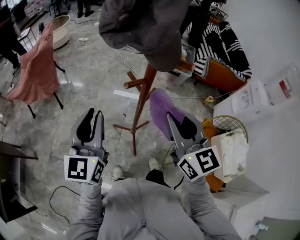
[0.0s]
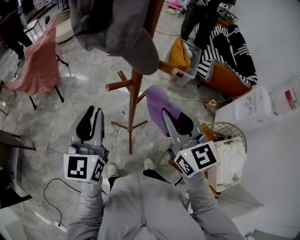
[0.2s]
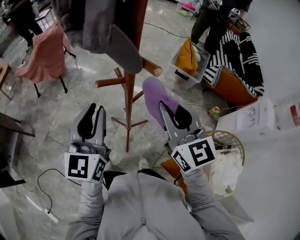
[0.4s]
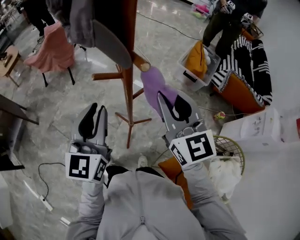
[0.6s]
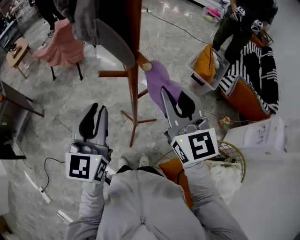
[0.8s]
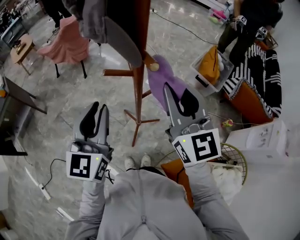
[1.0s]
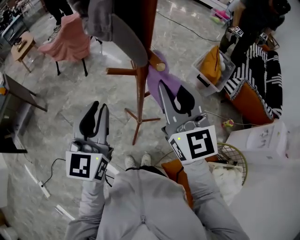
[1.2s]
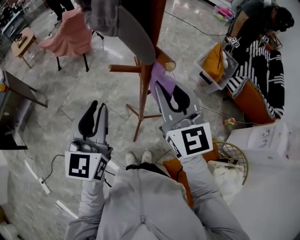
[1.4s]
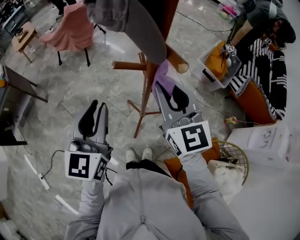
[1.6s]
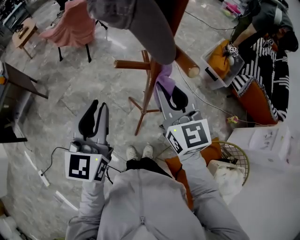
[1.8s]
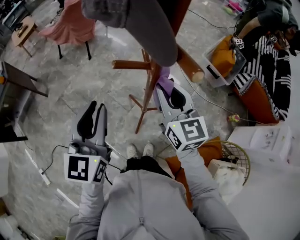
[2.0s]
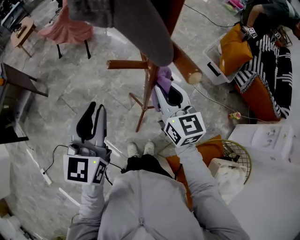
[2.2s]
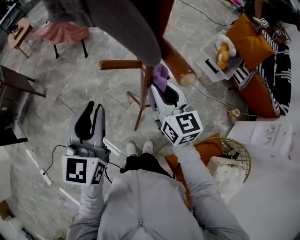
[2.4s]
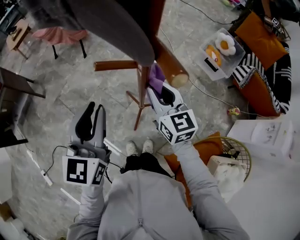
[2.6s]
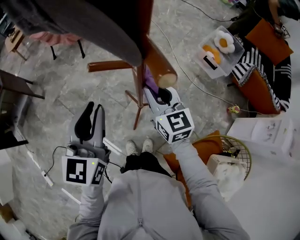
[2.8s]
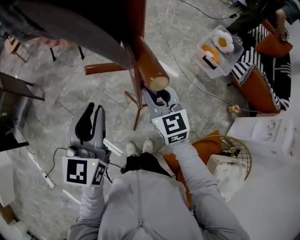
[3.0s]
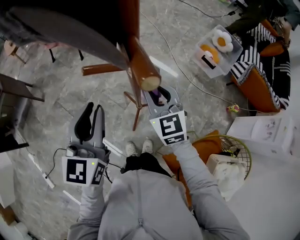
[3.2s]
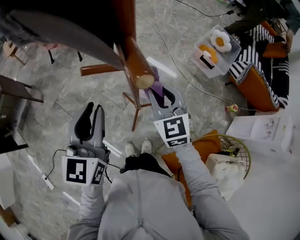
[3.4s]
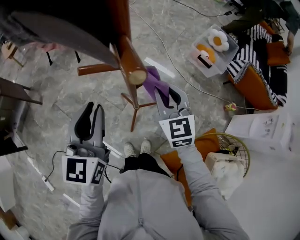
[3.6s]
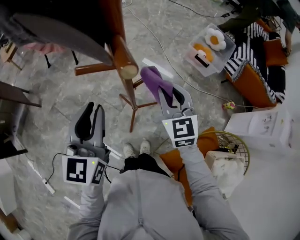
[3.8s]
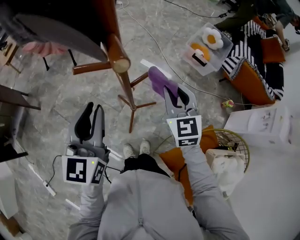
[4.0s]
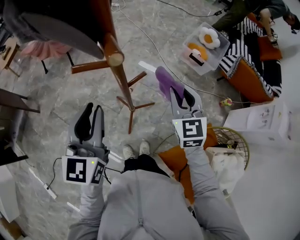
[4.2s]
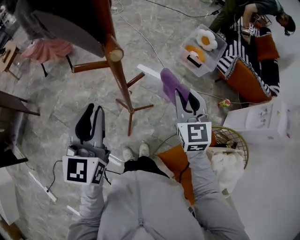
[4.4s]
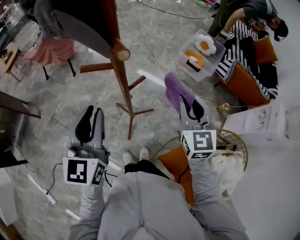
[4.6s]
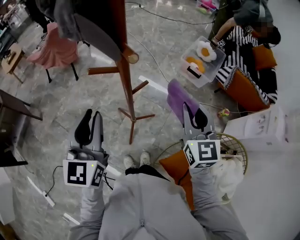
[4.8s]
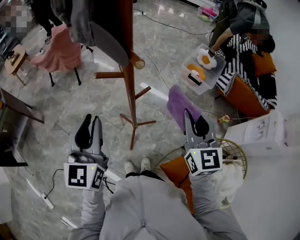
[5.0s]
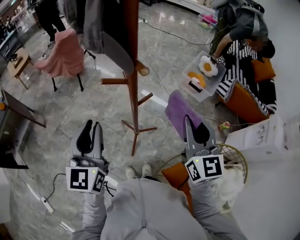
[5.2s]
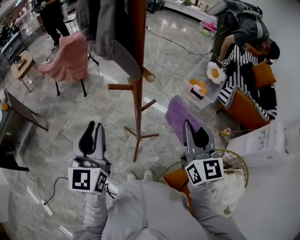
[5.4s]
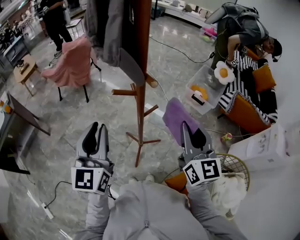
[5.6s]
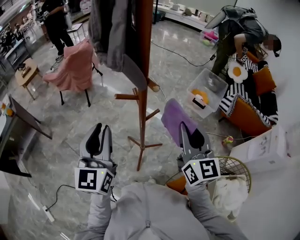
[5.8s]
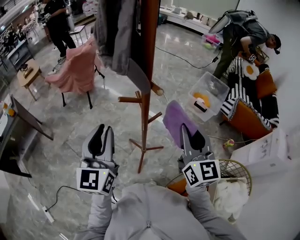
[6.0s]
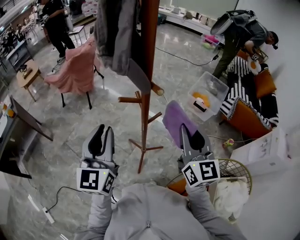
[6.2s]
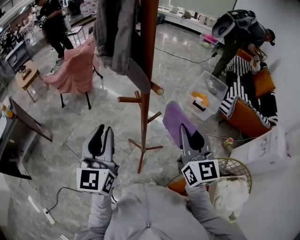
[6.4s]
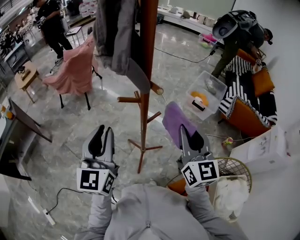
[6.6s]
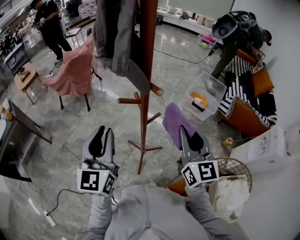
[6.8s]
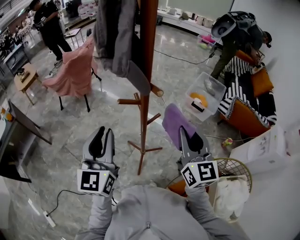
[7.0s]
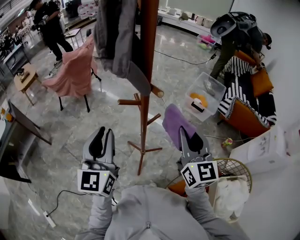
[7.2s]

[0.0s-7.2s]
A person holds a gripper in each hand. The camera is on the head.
0.0s to 1.4s: The left gripper heads to the right and backward, covering about 10 cm, and changes its angle by about 20 degrees. Meanwhile the right gripper is displaced forward by approximately 10 cm, and turns by approximately 30 degrees.
1.4s to 2.8s: The right gripper moves downward, some 15 cm.
2.8s to 4.4s: The left gripper shifts by some 5 cm, while the right gripper is displaced to the right by roughly 15 cm, and rotates roughly 30 degrees.
4.4s to 5.8s: The left gripper moves upward and to the left, about 10 cm; the right gripper is displaced upward, backward and to the left by approximately 15 cm, and changes its angle by approximately 30 degrees.
5.8s to 7.2s: The two grippers keep their place.

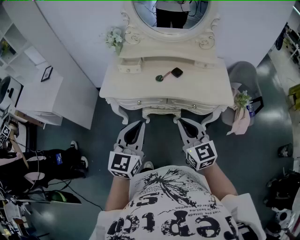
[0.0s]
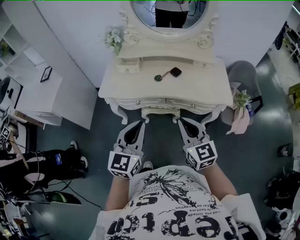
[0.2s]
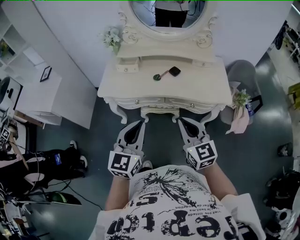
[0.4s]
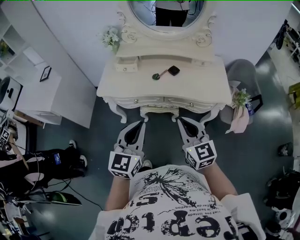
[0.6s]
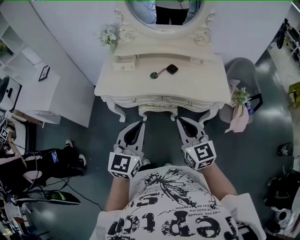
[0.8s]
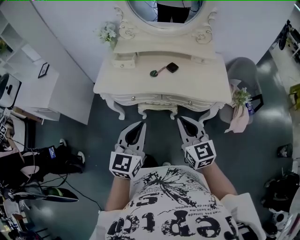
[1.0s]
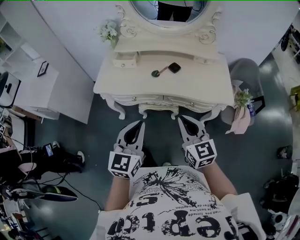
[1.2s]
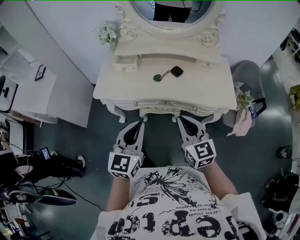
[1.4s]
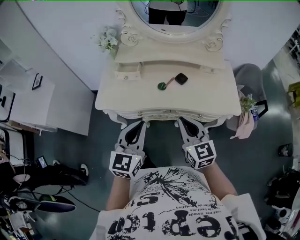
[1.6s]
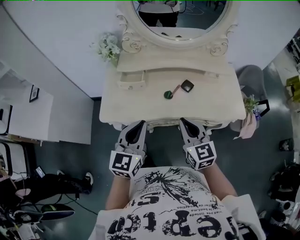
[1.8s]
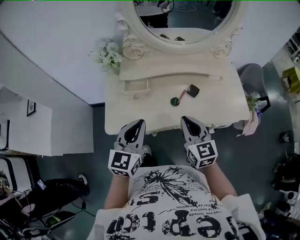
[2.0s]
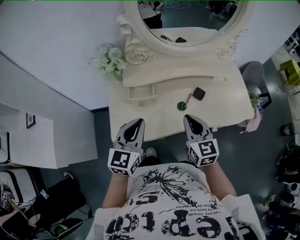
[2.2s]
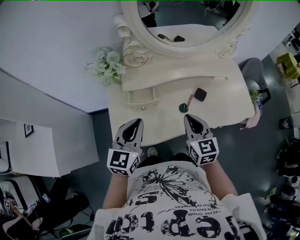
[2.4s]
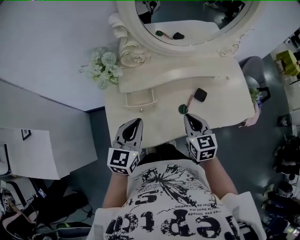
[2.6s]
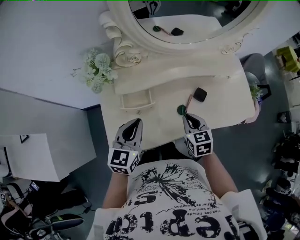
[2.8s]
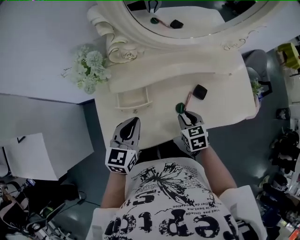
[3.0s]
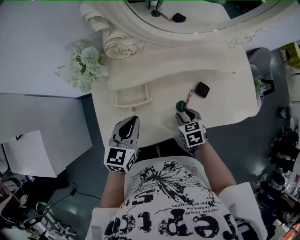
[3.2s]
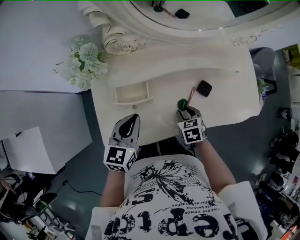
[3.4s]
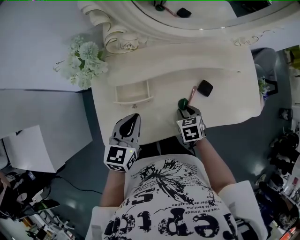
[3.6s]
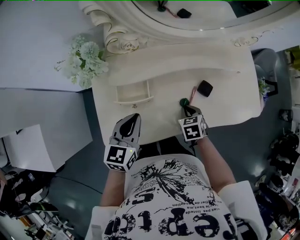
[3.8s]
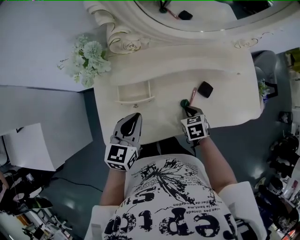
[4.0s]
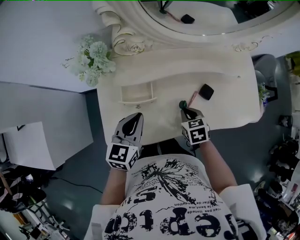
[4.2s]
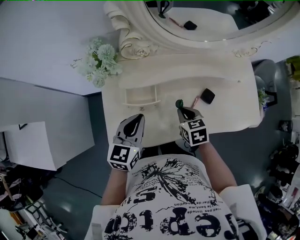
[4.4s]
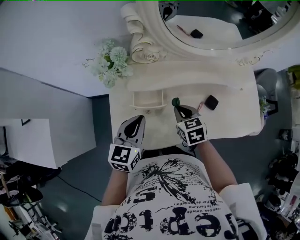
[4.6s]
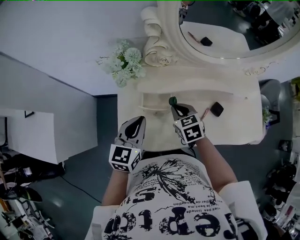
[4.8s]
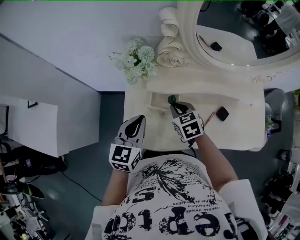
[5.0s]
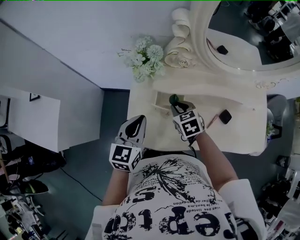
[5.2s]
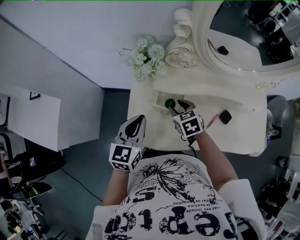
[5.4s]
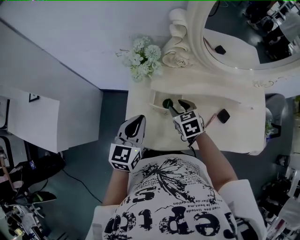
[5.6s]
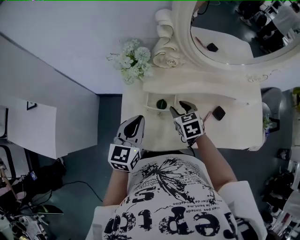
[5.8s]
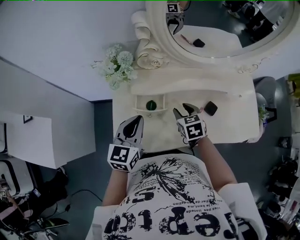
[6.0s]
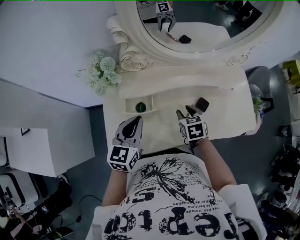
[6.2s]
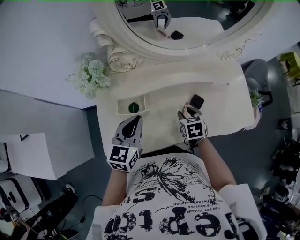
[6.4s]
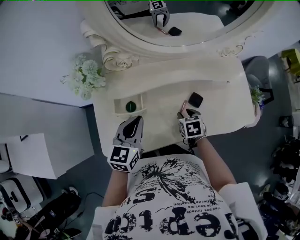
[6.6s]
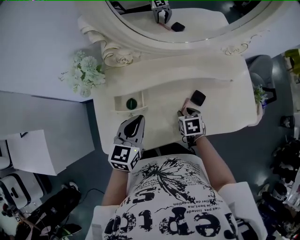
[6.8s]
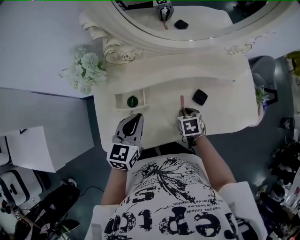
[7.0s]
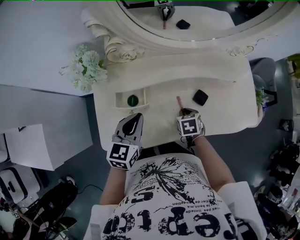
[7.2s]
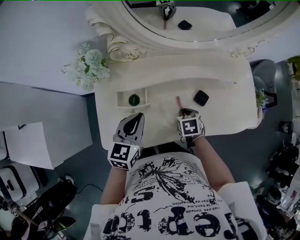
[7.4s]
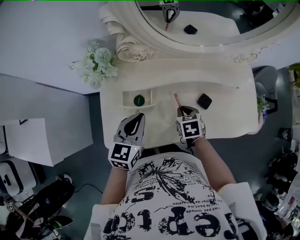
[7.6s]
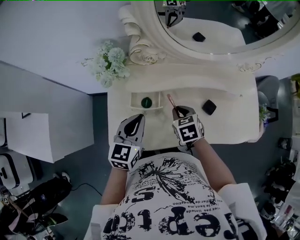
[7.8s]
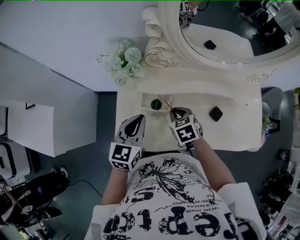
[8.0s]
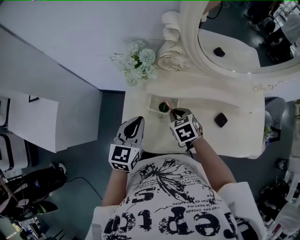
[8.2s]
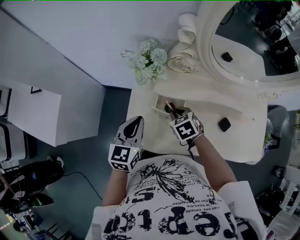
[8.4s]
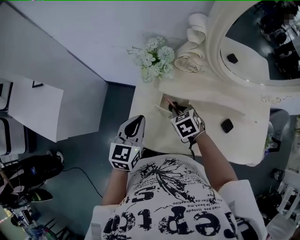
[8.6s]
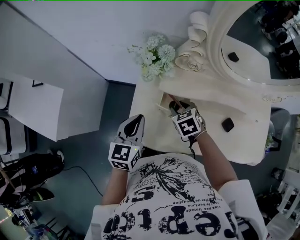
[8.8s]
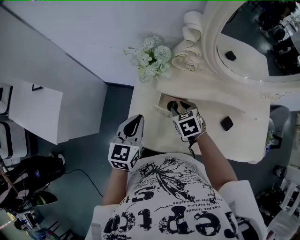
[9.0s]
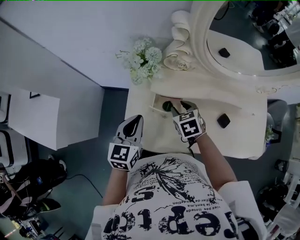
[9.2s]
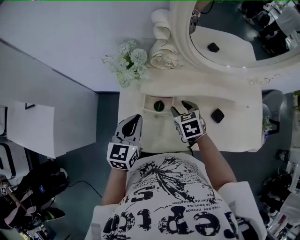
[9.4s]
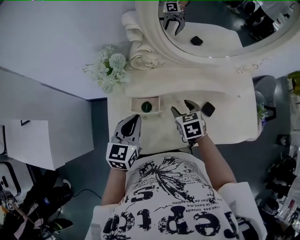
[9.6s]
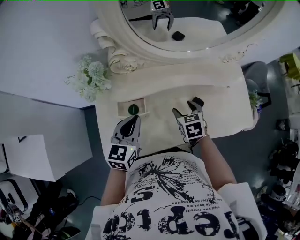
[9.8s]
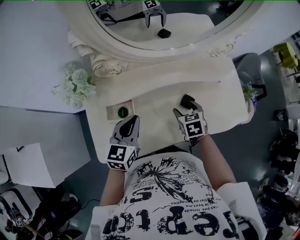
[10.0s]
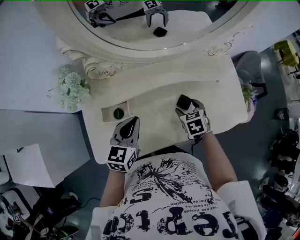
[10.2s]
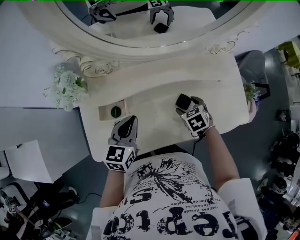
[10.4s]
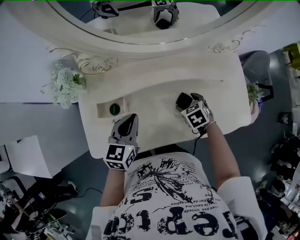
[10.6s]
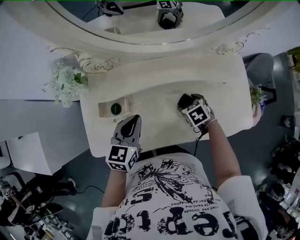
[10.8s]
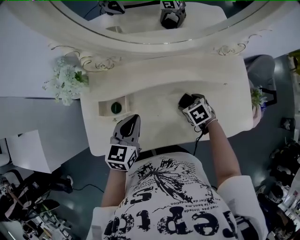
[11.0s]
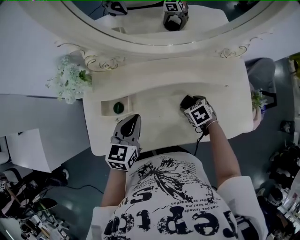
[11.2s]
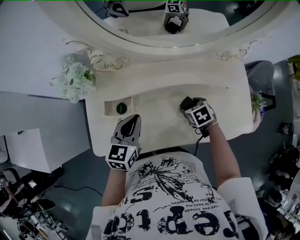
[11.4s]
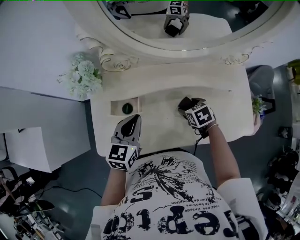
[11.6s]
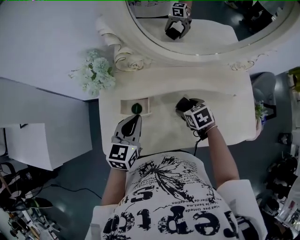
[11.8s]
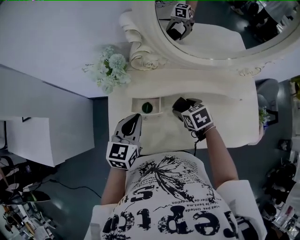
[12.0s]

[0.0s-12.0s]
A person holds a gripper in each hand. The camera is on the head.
0.0s to 1.6s: The grippers both shift forward by about 10 cm.
1.6s to 3.0s: The right gripper moves forward, downward and to the left, approximately 30 cm, and tips its fingers downward by roughly 40 degrees, while the left gripper moves forward and to the left, approximately 30 cm, and turns by approximately 20 degrees.
3.0s to 4.4s: The right gripper shifts by approximately 5 cm.
4.4s to 6.0s: The right gripper reaches some 15 cm to the left, then returns, and opens its fingers.
6.0s to 7.6s: Both grippers travel together to the right, about 5 cm. The right gripper closes its fingers.
7.6s to 9.0s: The right gripper travels to the left and forward by about 20 cm, and rotates roughly 30 degrees. Meanwhile the left gripper goes about 15 cm to the left.
9.0s to 10.4s: The right gripper shifts by approximately 35 cm, and opens, while the left gripper moves roughly 25 cm, and turns by roughly 20 degrees.
10.4s to 12.0s: The grippers both shift to the left by roughly 15 cm.

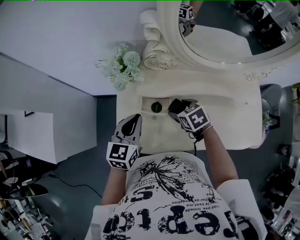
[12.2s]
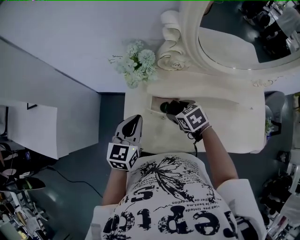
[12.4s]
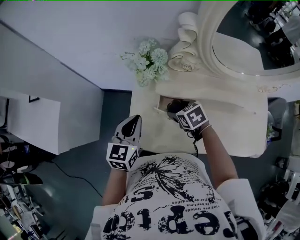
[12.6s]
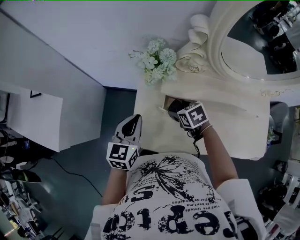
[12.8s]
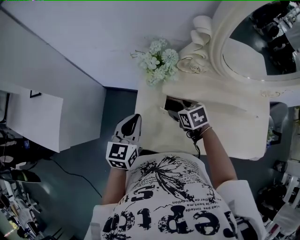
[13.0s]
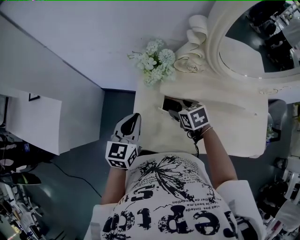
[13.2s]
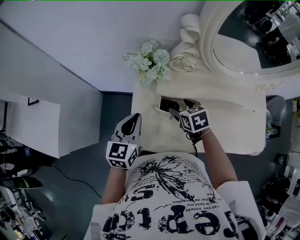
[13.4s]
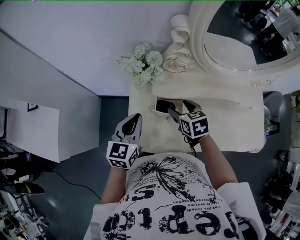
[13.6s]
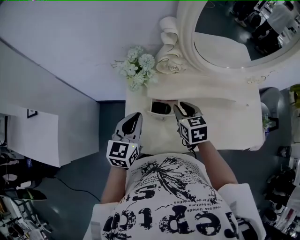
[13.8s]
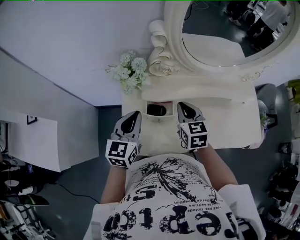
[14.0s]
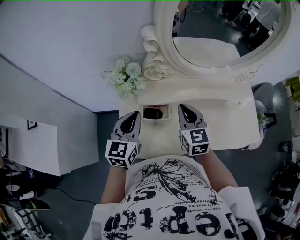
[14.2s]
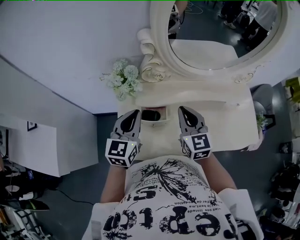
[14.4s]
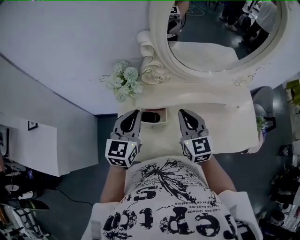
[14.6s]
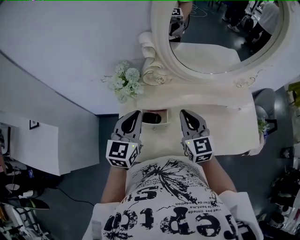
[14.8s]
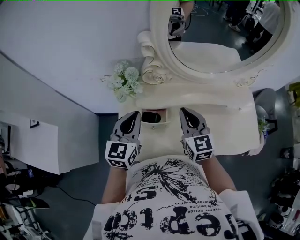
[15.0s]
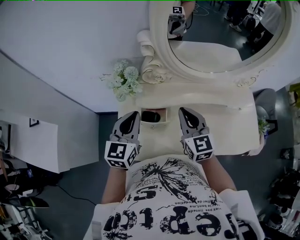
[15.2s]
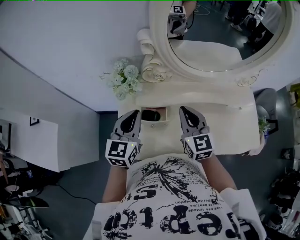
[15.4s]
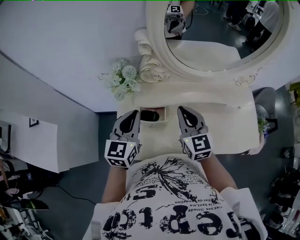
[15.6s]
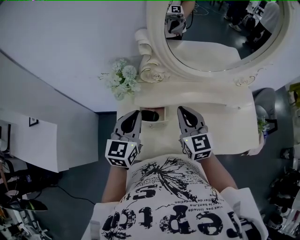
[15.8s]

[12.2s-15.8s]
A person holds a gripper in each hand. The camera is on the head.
12.2s to 14.0s: The right gripper goes approximately 10 cm upward, swivels roughly 40 degrees, and closes its fingers.
14.0s to 15.8s: The left gripper shifts by about 5 cm. Meanwhile the right gripper goes about 5 cm upward.

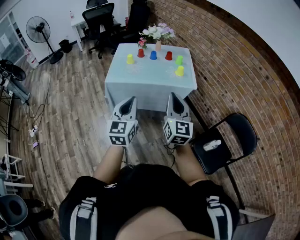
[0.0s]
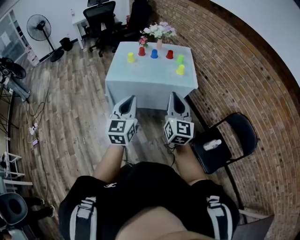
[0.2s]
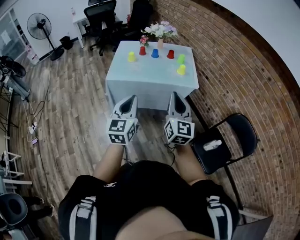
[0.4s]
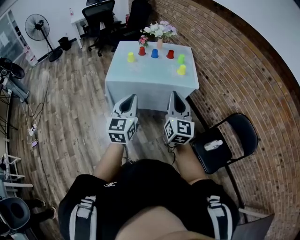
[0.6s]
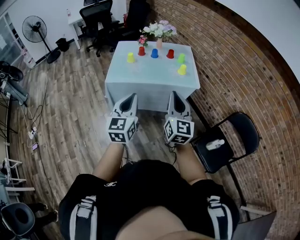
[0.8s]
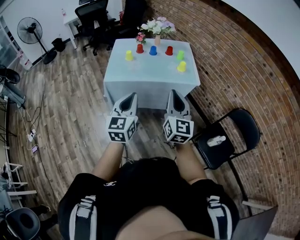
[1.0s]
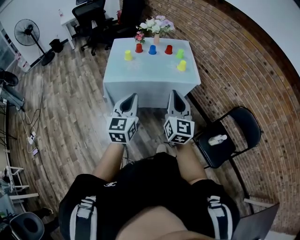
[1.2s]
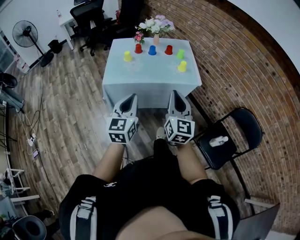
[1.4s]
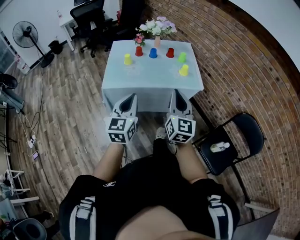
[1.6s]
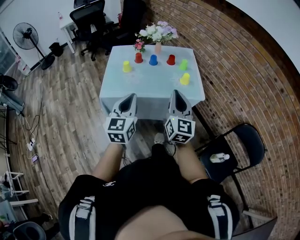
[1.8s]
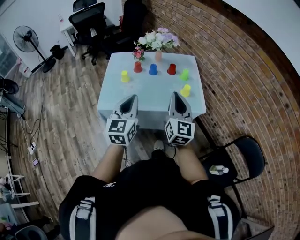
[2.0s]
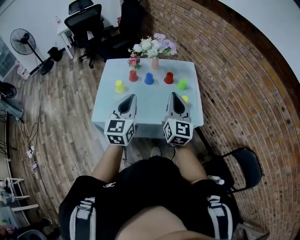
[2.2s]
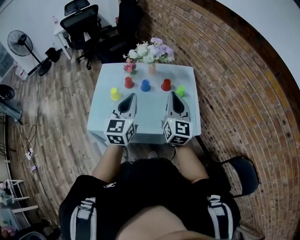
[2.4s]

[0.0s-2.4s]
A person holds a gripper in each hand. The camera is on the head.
0.0s to 1.2s: The right gripper changes place by some 5 cm. The left gripper travels forward by approximately 5 cm.
1.2s to 2.4s: The pair of grippers is taken forward, approximately 40 cm.
